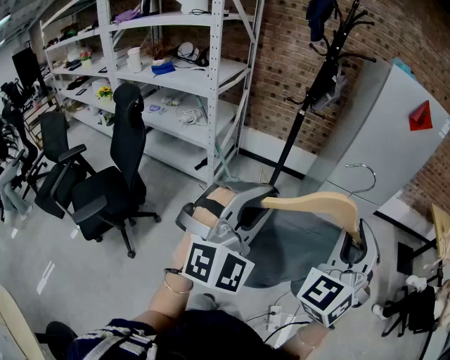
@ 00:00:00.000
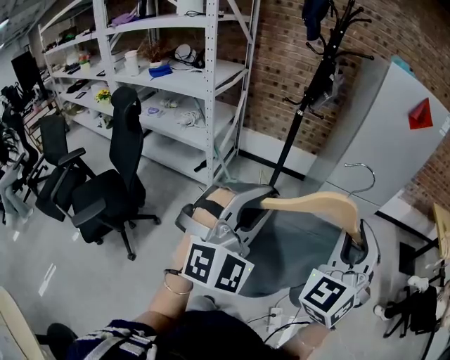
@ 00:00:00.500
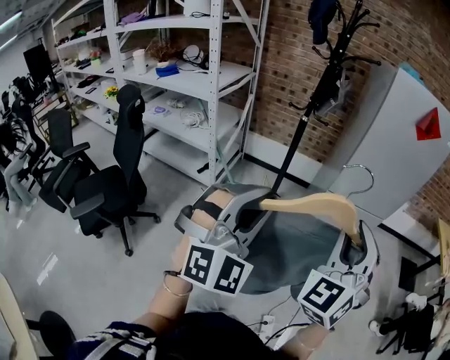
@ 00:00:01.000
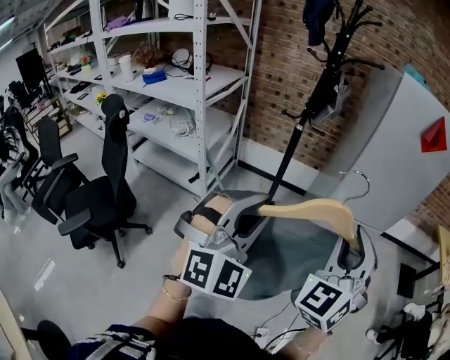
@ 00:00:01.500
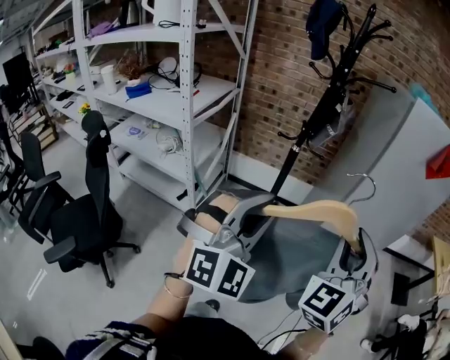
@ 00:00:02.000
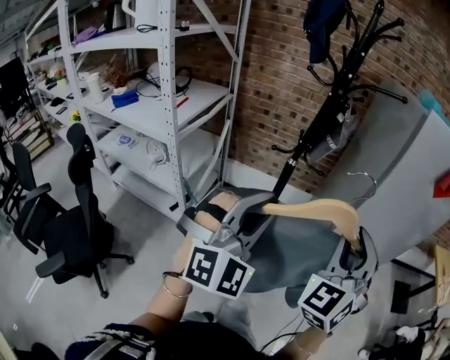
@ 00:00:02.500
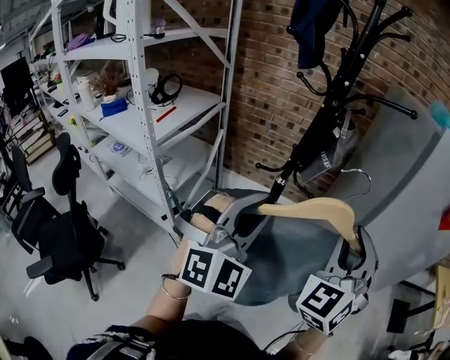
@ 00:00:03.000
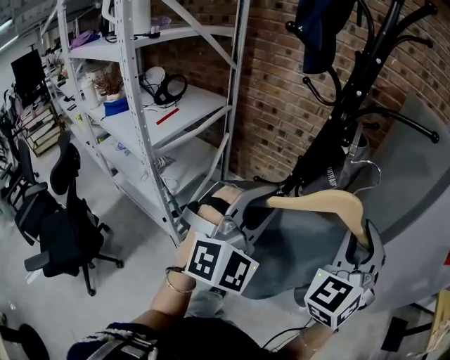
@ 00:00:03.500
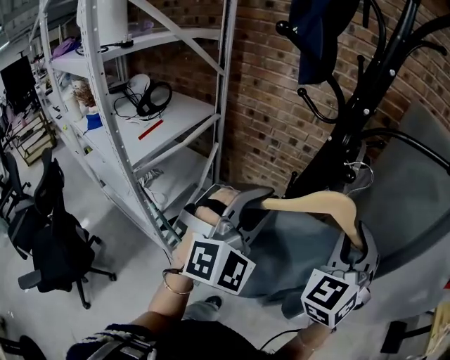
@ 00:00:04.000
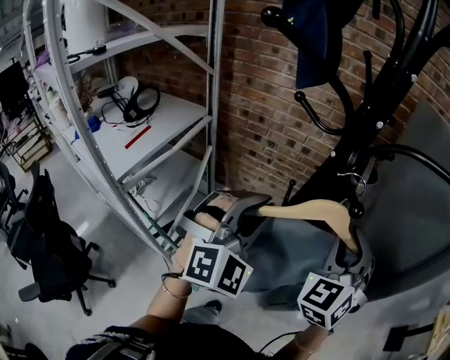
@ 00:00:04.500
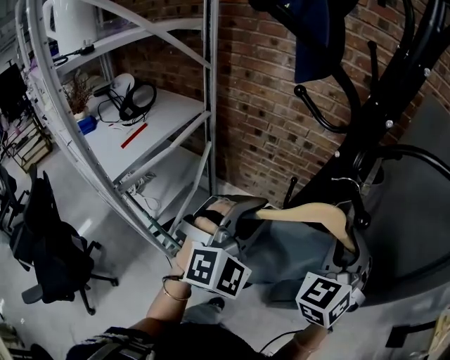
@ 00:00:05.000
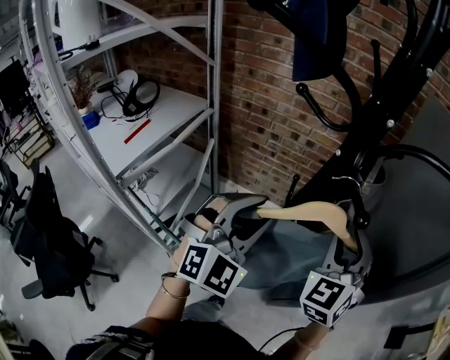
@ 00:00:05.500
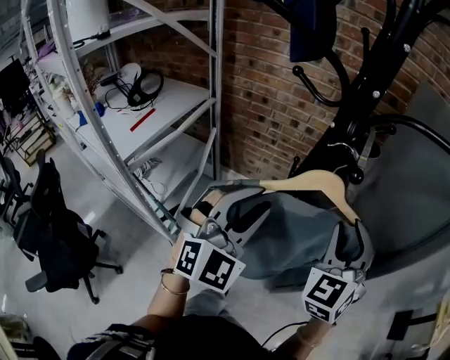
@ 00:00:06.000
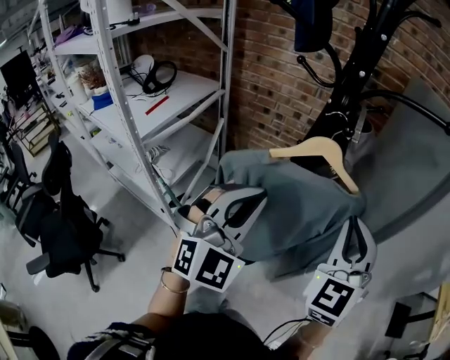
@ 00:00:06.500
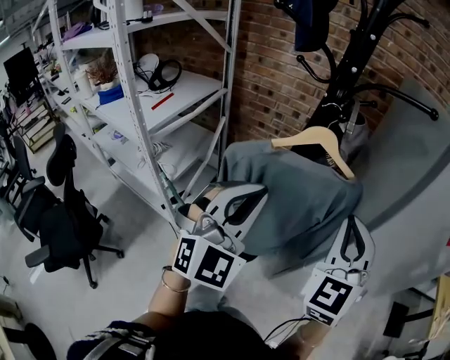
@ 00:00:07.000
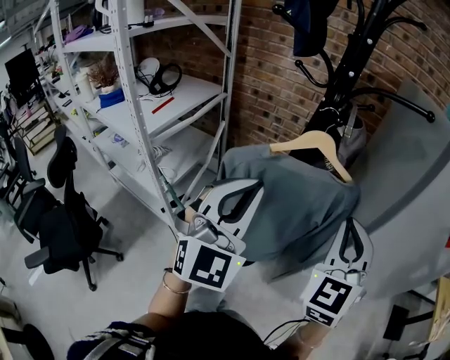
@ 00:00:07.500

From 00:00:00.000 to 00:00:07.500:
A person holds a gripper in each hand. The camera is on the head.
From 00:00:00.000 to 00:00:02.000: Both grippers travel together forward, about 30 cm.
From 00:00:02.000 to 00:00:04.000: Both grippers are carried forward, roughly 40 cm.
From 00:00:04.000 to 00:00:05.500: The two grippers go approximately 10 cm forward and downward.
From 00:00:05.500 to 00:00:07.500: The grippers both shift backward by roughly 20 cm. The right gripper closes. Meanwhile the left gripper changes its angle by some 20 degrees, and closes.

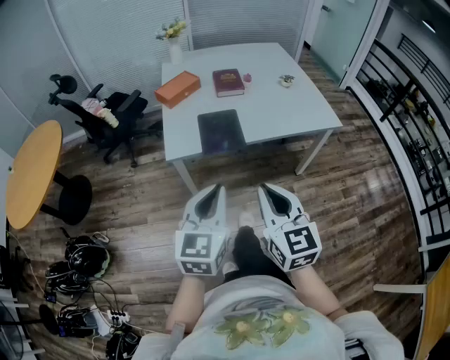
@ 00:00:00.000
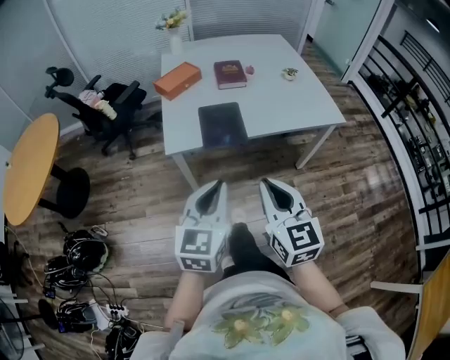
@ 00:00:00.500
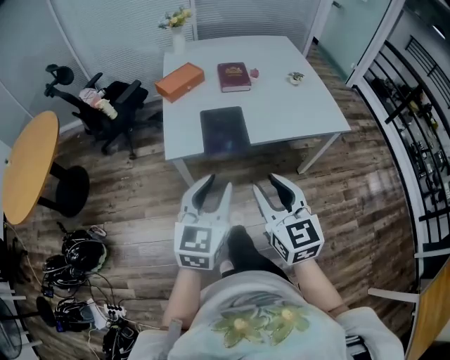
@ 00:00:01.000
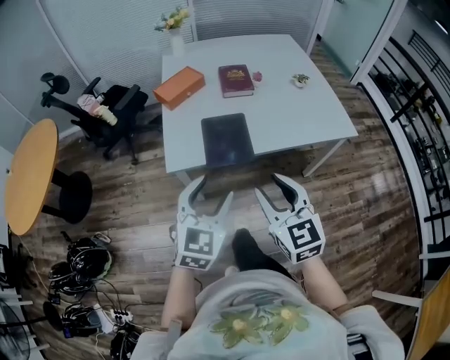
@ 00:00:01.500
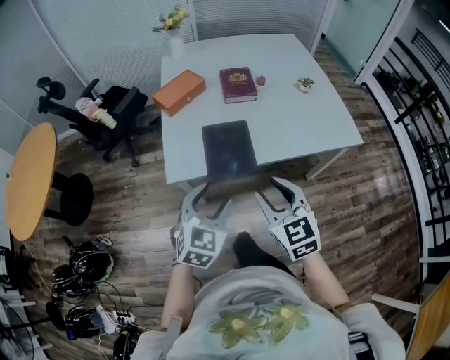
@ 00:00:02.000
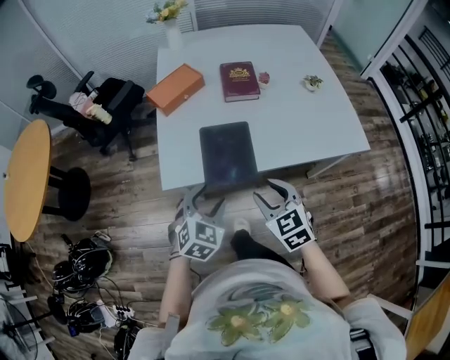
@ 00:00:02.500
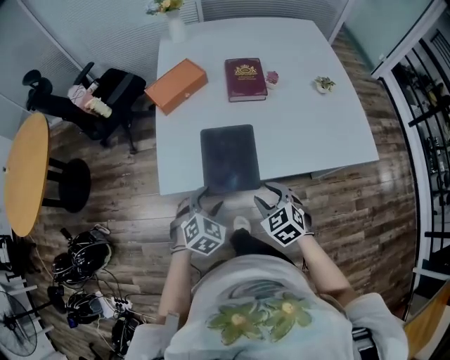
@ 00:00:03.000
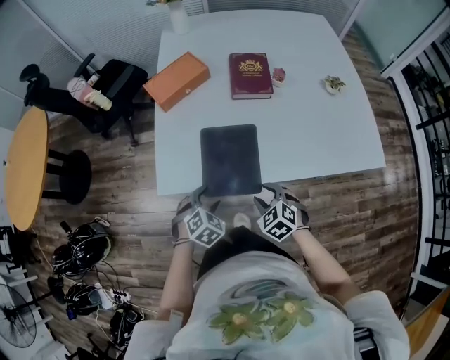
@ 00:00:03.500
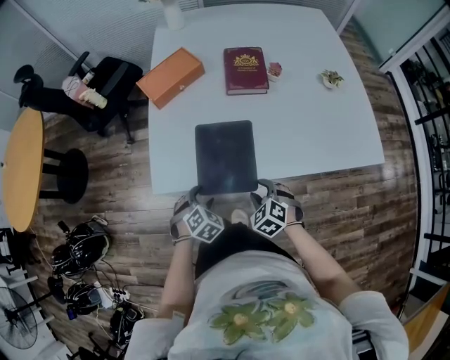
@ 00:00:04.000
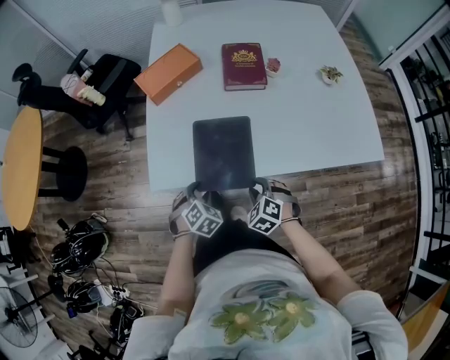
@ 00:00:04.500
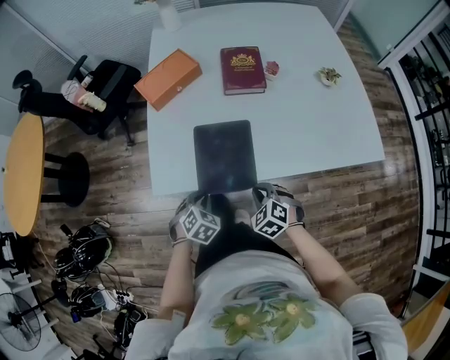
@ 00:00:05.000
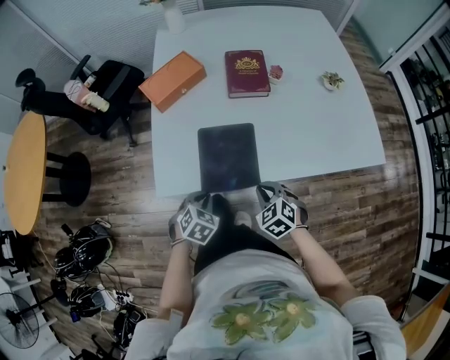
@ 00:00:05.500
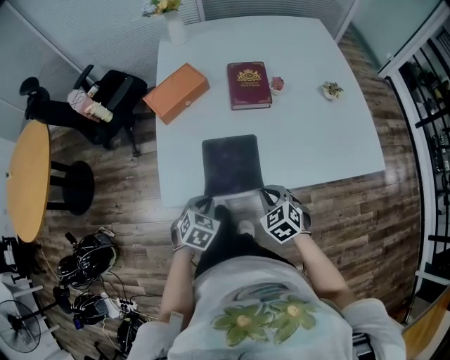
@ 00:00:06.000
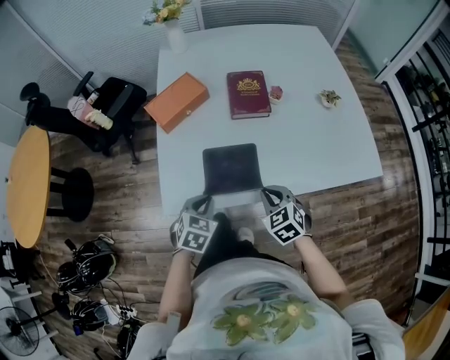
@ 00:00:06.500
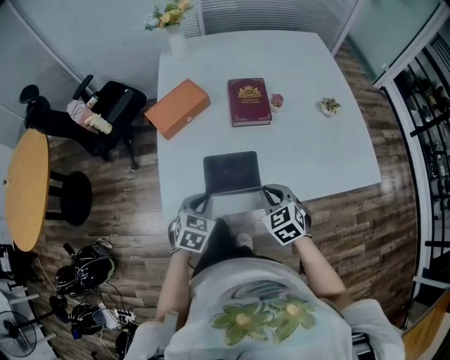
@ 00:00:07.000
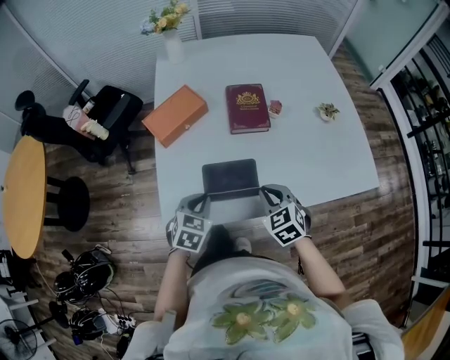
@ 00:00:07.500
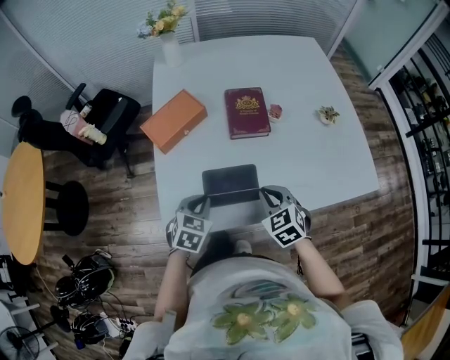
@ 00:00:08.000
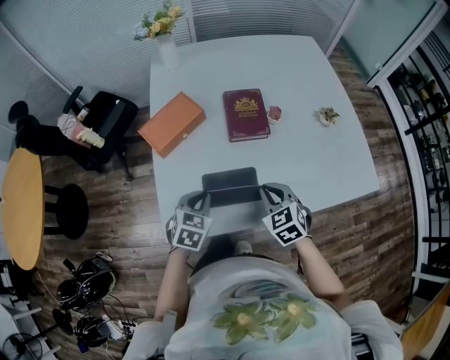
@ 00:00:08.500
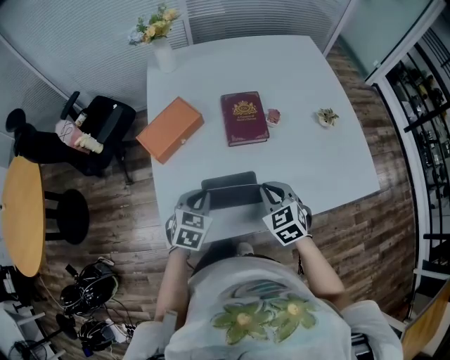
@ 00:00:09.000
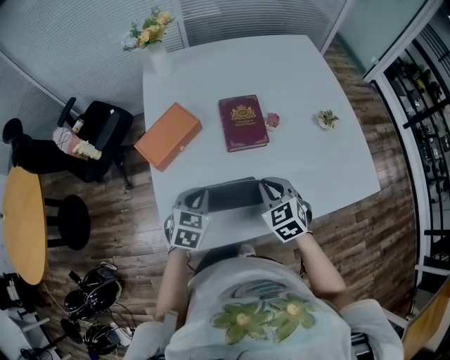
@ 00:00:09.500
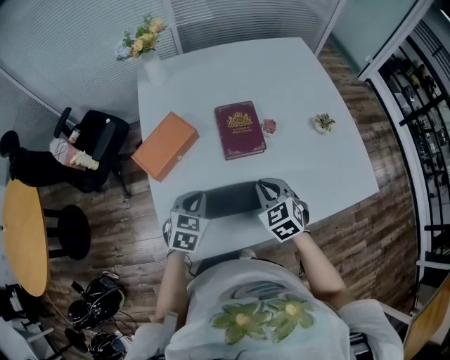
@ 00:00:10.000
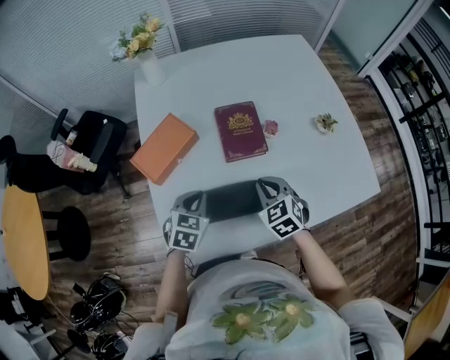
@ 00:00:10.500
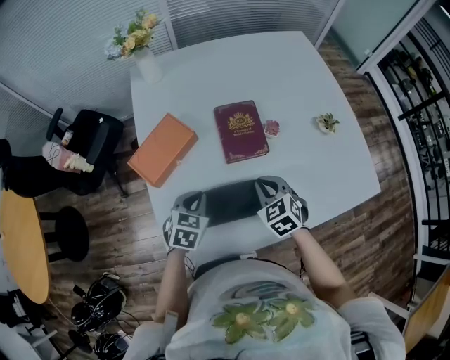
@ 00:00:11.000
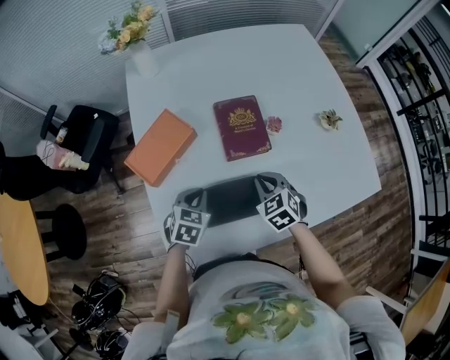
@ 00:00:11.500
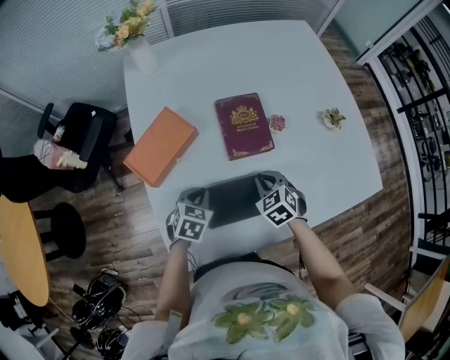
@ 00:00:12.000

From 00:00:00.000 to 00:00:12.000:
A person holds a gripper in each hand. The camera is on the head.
From 00:00:00.000 to 00:00:02.000: The right gripper moves forward, roughly 20 cm, and opens. The left gripper heads forward and downward, covering roughly 20 cm, rotates some 30 degrees, and opens up.
From 00:00:02.000 to 00:00:04.000: Both grippers move downward and forward, approximately 30 cm. The left gripper angles its fingers downward, by about 30 degrees; the right gripper points its fingers some 30 degrees further downward.
From 00:00:04.000 to 00:00:06.000: The grippers both shift upward by about 5 cm. The right gripper closes its fingers. Meanwhile the left gripper closes up.
From 00:00:06.000 to 00:00:08.000: The grippers both shift forward and upward by about 10 cm.
From 00:00:08.000 to 00:00:10.000: The two grippers go some 10 cm forward.
From 00:00:10.000 to 00:00:12.000: The left gripper heads downward, covering about 10 cm, while the right gripper heads downward and forward, covering roughly 10 cm.

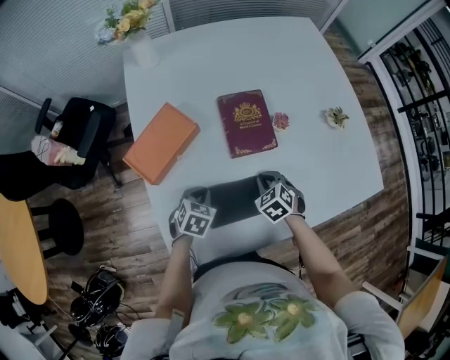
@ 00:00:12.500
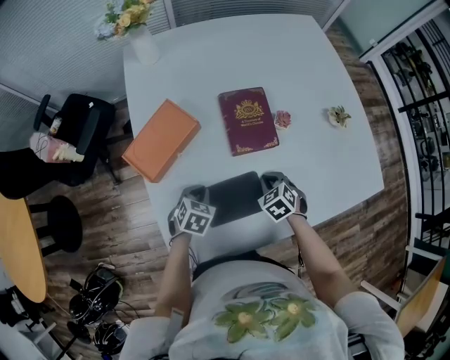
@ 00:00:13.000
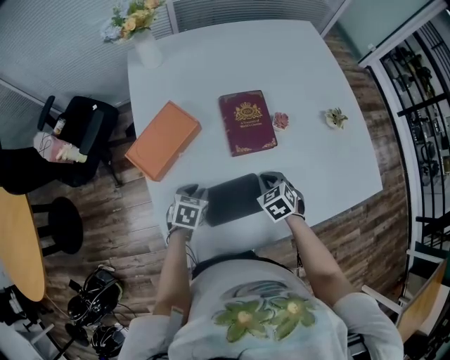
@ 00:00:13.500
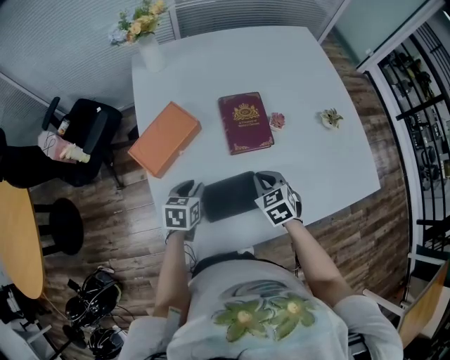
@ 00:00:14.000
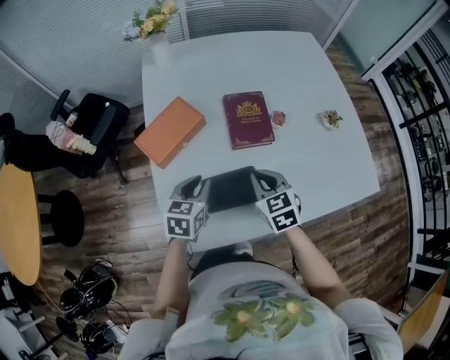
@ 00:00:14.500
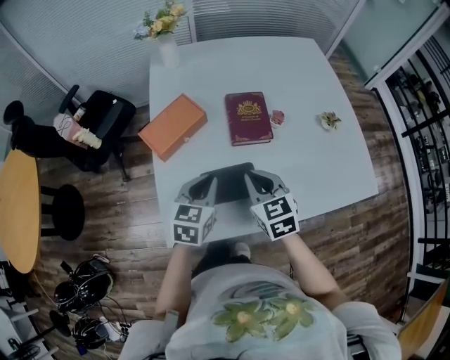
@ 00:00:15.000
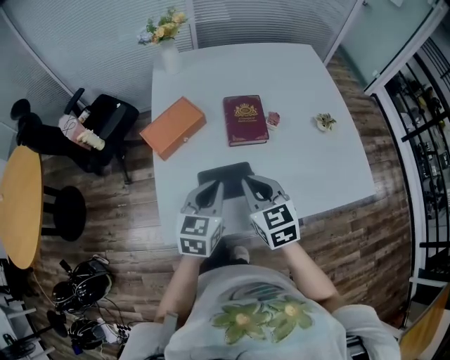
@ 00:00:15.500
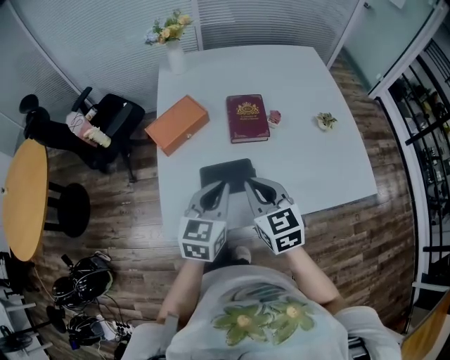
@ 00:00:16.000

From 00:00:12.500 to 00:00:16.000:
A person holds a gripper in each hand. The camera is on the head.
From 00:00:12.500 to 00:00:14.500: Both grippers move upward, about 15 cm. The left gripper changes its angle by about 30 degrees. The right gripper rotates some 30 degrees.
From 00:00:14.500 to 00:00:16.000: The right gripper travels upward and backward by about 15 cm; the left gripper travels upward, backward and to the right by some 20 cm.

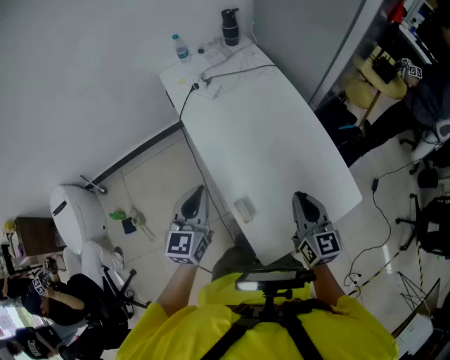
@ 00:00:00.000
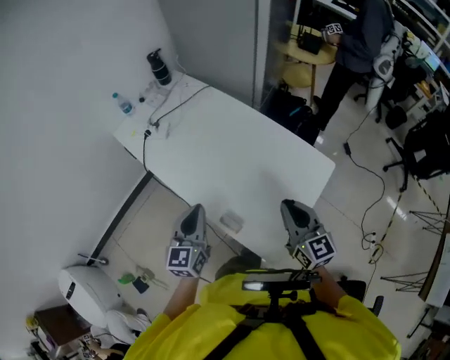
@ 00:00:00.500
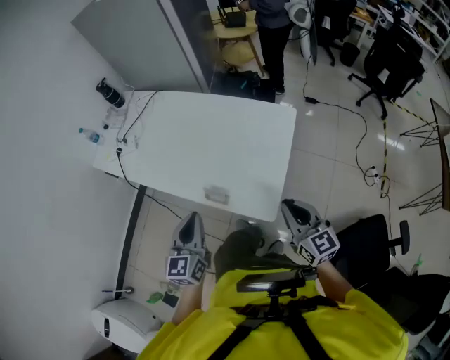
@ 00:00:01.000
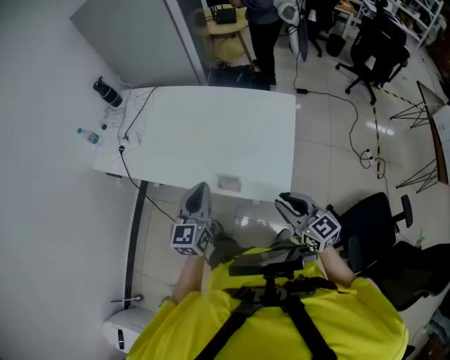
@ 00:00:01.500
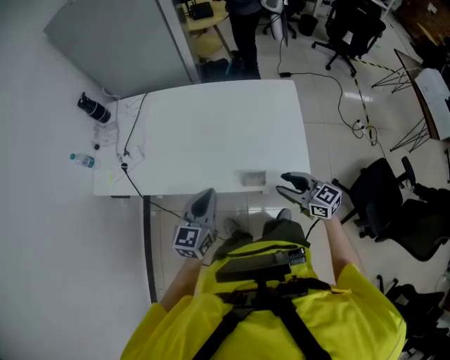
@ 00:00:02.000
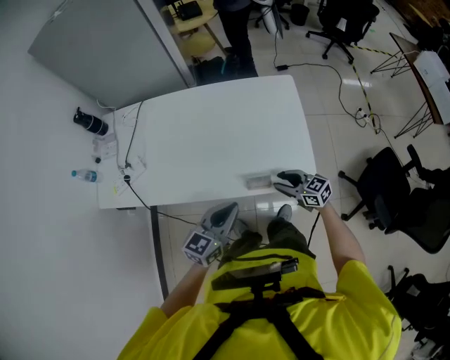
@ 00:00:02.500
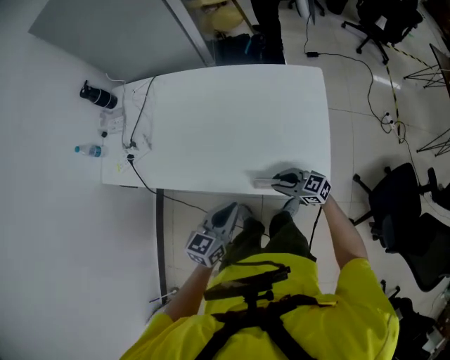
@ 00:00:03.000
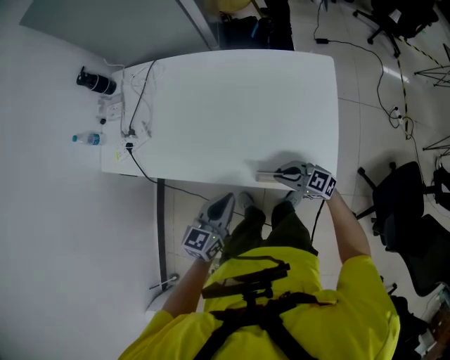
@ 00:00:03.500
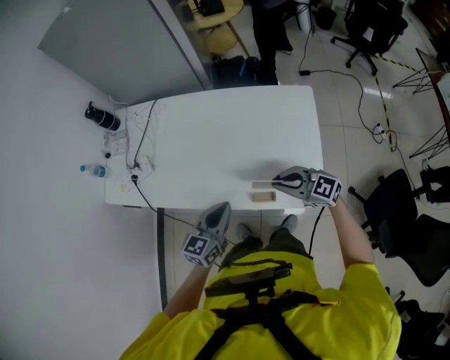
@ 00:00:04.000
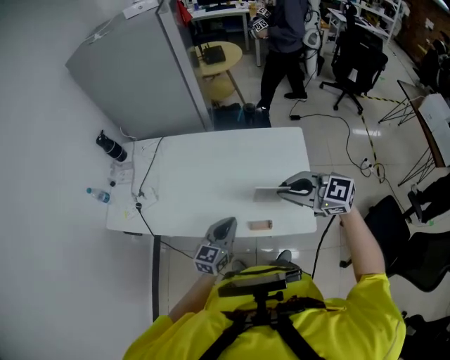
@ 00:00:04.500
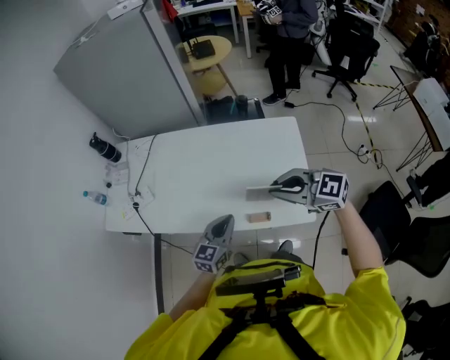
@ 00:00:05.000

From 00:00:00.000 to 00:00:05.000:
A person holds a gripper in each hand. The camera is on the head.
From 00:00:00.000 to 00:00:02.500: The left gripper is displaced downward by approximately 5 cm, and turns by some 80 degrees. Meanwhile the right gripper heads downward, covering some 20 cm, turns by about 20 degrees, and opens.
From 00:00:02.500 to 00:00:05.000: The right gripper goes some 25 cm upward, turns by approximately 30 degrees, and closes up. The left gripper heads forward, covering about 5 cm.
